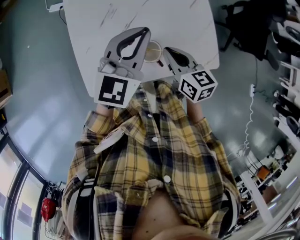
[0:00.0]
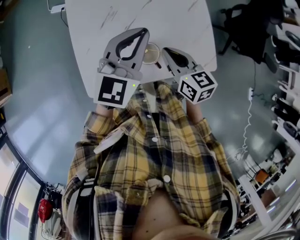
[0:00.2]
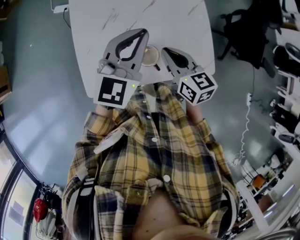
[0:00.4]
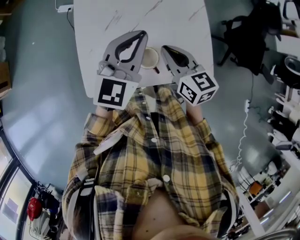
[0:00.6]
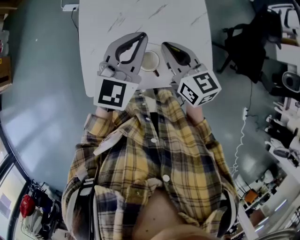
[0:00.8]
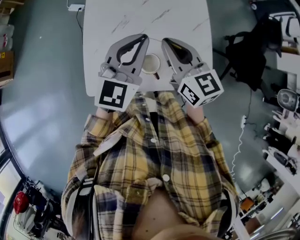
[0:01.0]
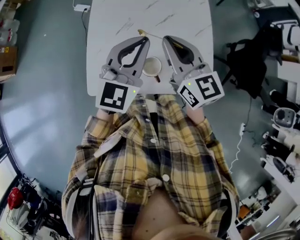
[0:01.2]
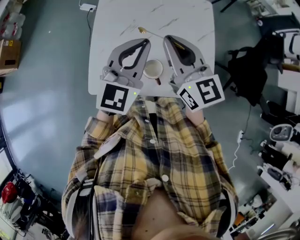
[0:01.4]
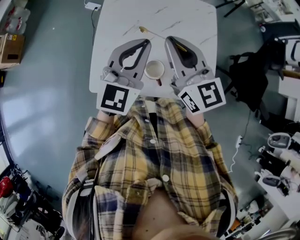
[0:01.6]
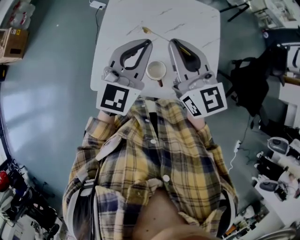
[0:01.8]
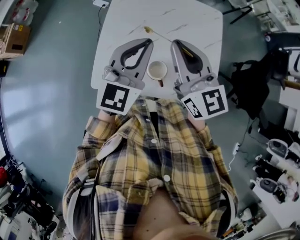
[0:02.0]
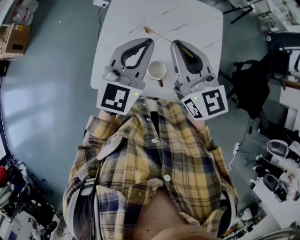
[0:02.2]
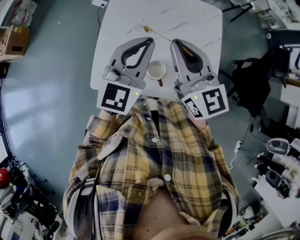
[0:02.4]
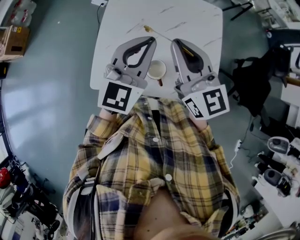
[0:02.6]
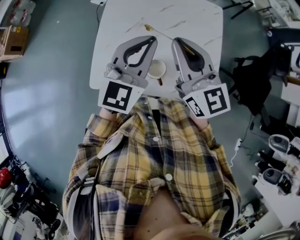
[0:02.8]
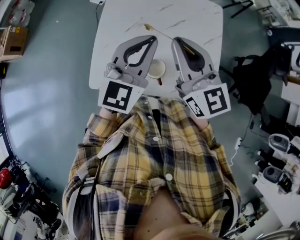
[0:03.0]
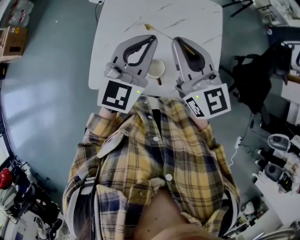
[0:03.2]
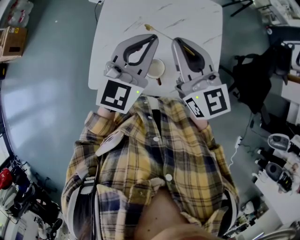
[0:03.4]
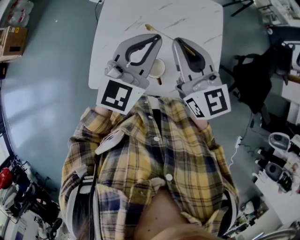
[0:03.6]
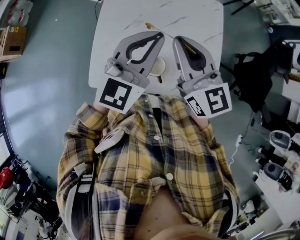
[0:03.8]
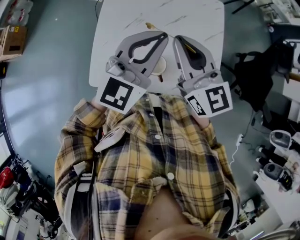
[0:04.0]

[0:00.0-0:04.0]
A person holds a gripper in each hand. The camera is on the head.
0:00.0 to 0:01.4: The left gripper travels upward by about 5 cm. Meanwhile the right gripper is displaced upward by roughly 20 cm, and turns by about 40 degrees.
0:01.4 to 0:04.0: The grippers stay close to where they were, moving slightly.

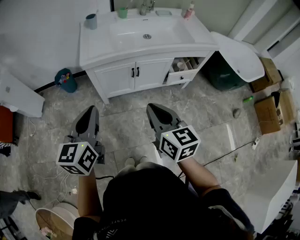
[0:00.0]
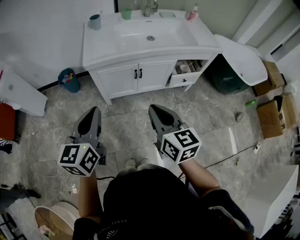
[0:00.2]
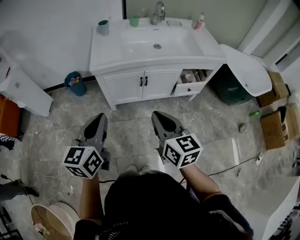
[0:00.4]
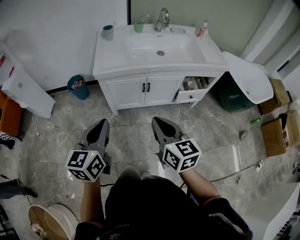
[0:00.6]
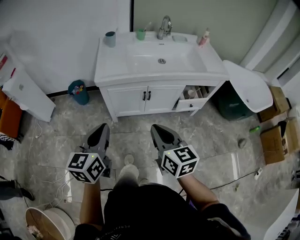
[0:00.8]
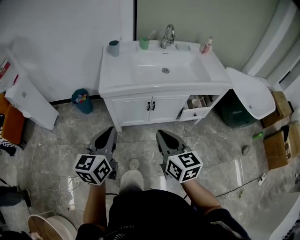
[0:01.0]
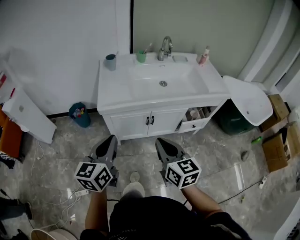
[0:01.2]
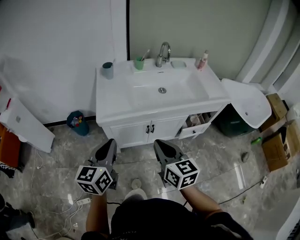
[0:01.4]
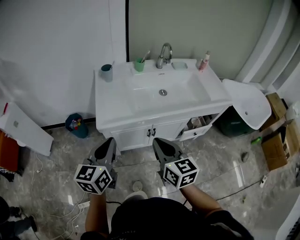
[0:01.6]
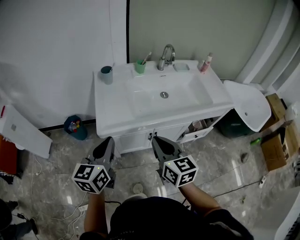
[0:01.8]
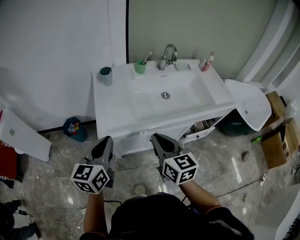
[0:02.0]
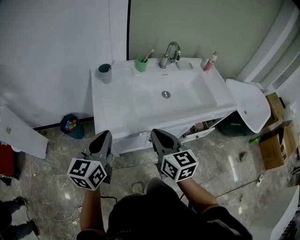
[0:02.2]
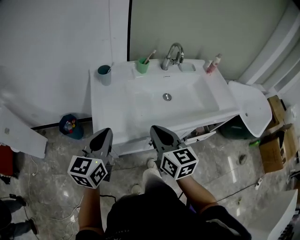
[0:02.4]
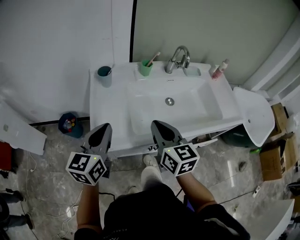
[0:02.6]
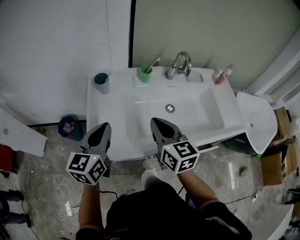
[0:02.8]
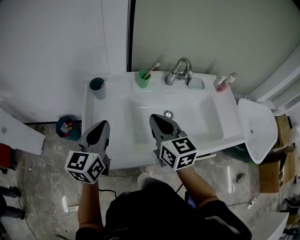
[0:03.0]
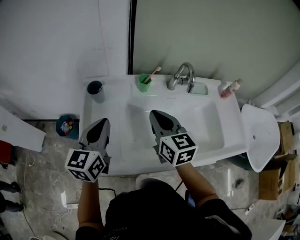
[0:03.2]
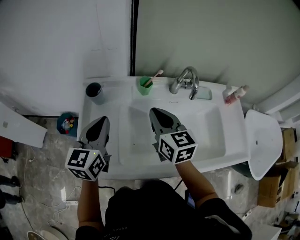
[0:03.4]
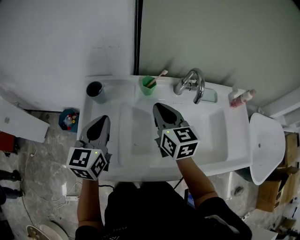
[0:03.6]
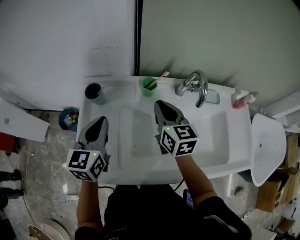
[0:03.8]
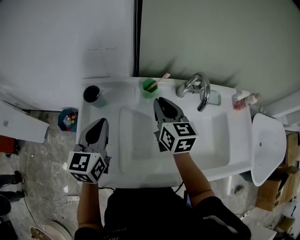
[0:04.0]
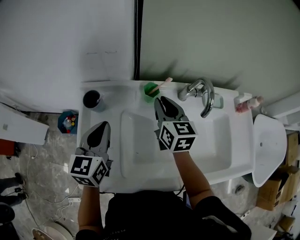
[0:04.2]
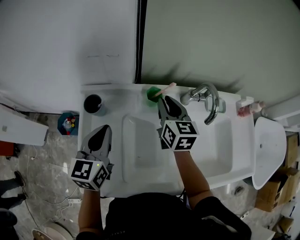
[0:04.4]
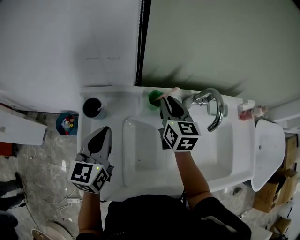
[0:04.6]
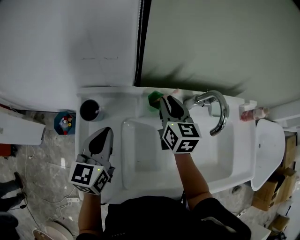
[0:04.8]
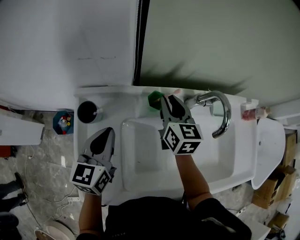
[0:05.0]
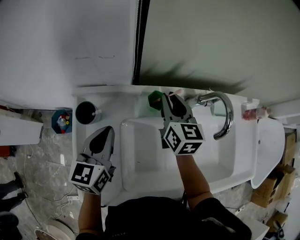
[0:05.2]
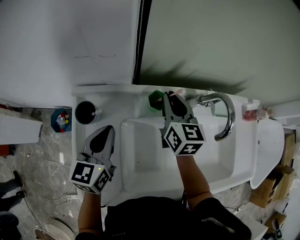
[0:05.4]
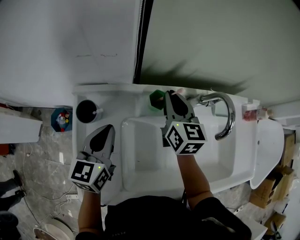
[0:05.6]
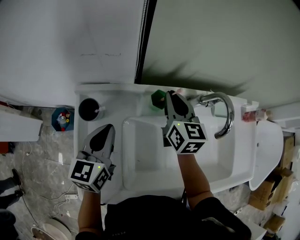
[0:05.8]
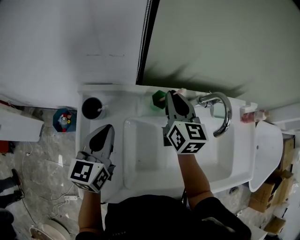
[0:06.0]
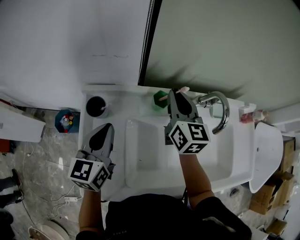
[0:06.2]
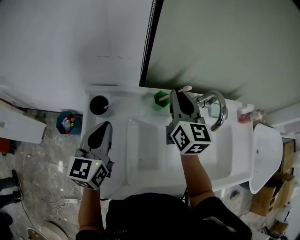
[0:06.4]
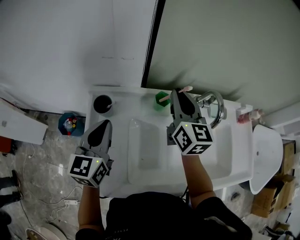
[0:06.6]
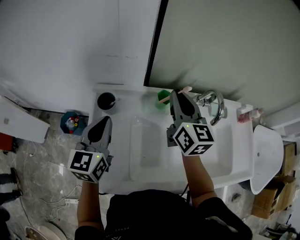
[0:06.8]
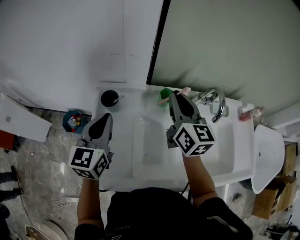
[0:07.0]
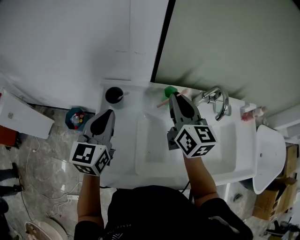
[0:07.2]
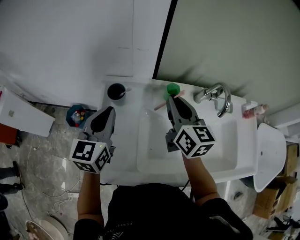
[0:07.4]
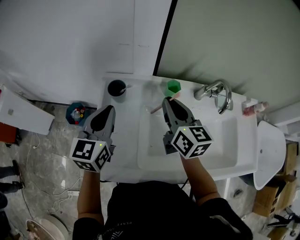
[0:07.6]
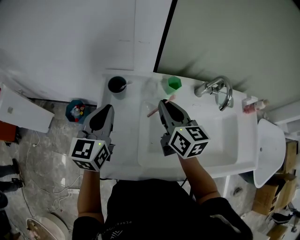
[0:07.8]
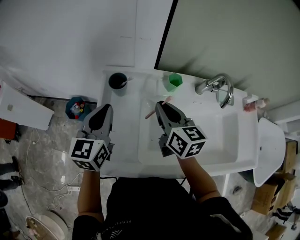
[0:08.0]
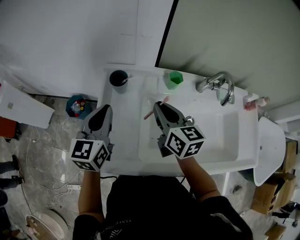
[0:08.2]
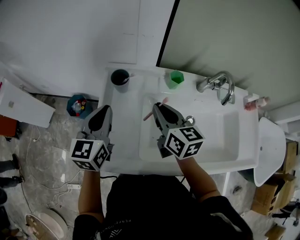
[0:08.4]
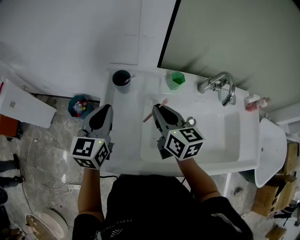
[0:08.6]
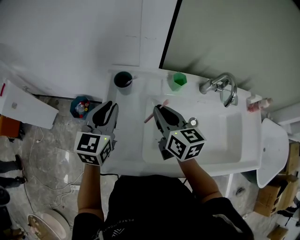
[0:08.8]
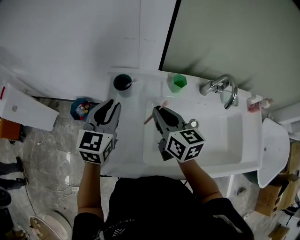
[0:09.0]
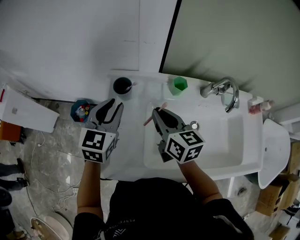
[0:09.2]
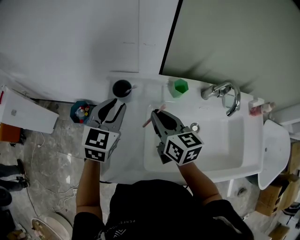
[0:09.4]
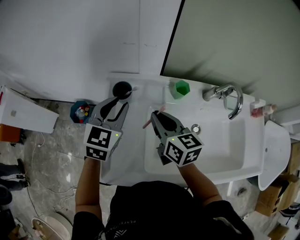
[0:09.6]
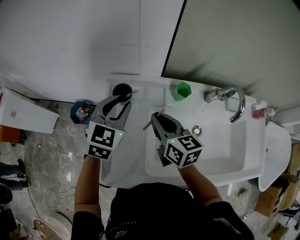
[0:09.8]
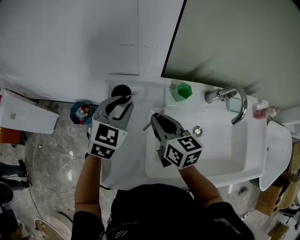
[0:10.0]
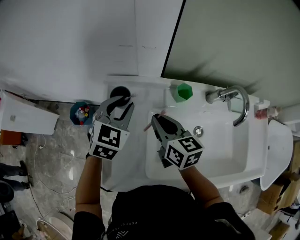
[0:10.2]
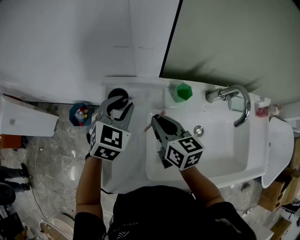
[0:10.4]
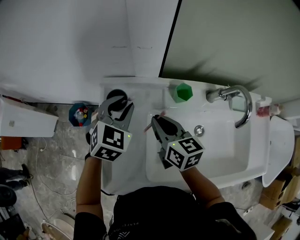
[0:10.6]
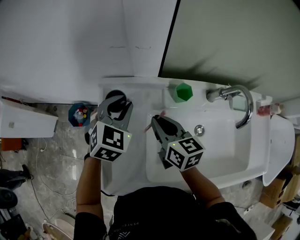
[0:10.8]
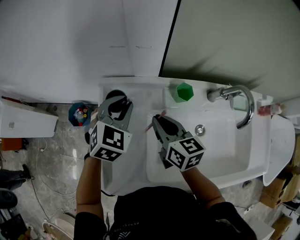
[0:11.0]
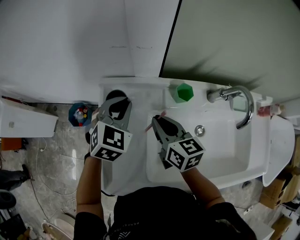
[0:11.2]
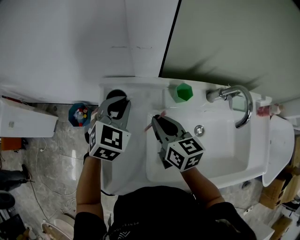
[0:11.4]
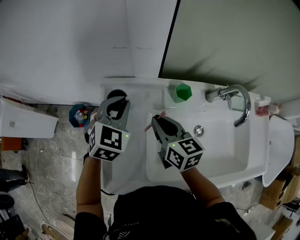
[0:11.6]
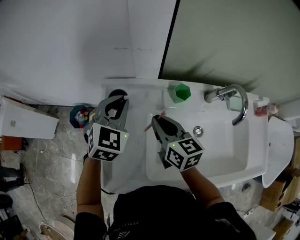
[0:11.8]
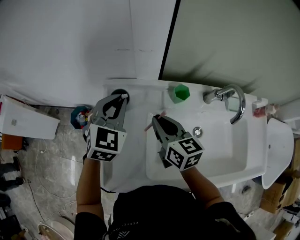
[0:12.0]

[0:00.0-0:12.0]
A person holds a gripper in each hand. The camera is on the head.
0:00.0 to 0:01.6: Both grippers move forward, some 20 cm.
0:01.6 to 0:03.0: Both grippers travel together forward, roughly 30 cm.
0:03.0 to 0:04.4: The right gripper shifts about 25 cm forward. The left gripper moves forward, about 15 cm.
0:06.0 to 0:07.6: The left gripper shifts roughly 10 cm to the left and upward, while the right gripper goes roughly 15 cm backward and to the left.
0:07.6 to 0:09.0: The right gripper heads to the left, covering some 5 cm.
0:09.0 to 0:10.4: The left gripper goes about 10 cm forward and to the right, and changes its angle by some 30 degrees. The right gripper shifts approximately 5 cm forward.
0:10.4 to 0:12.0: The left gripper closes.

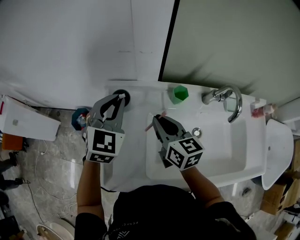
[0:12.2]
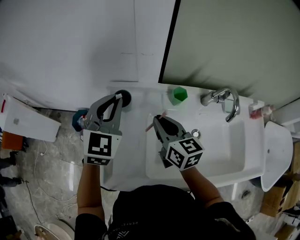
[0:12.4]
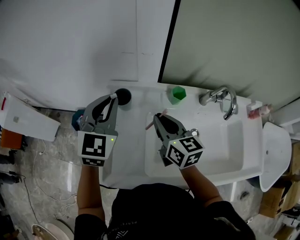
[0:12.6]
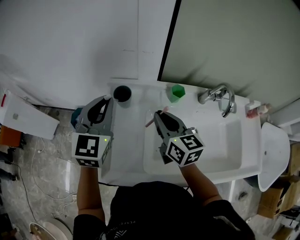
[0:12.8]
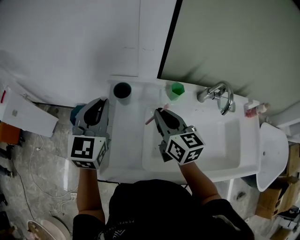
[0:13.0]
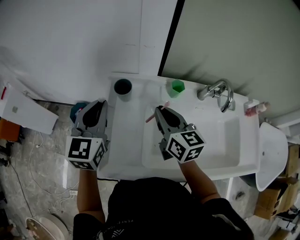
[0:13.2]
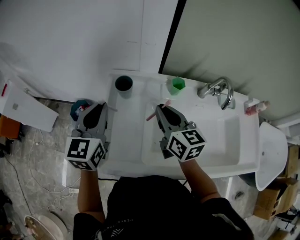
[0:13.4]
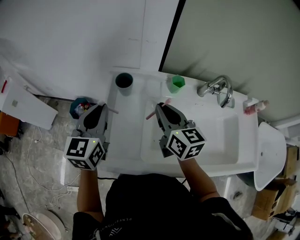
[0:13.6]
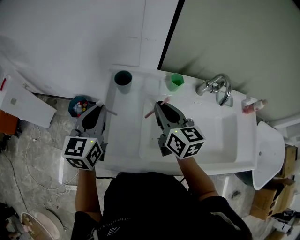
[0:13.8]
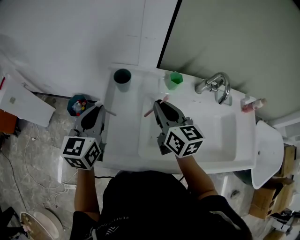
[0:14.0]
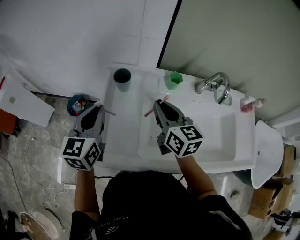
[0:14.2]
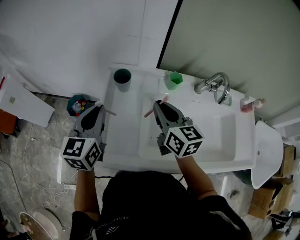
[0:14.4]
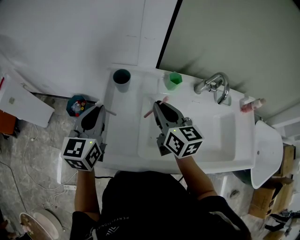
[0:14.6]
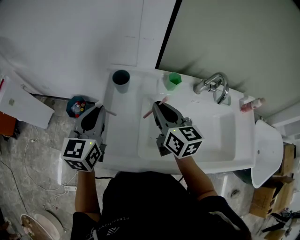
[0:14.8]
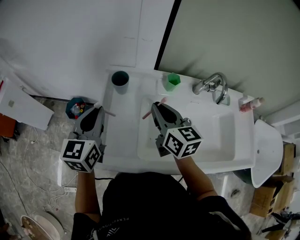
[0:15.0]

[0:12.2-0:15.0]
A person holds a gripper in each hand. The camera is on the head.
0:12.2 to 0:13.6: The left gripper is displaced backward and to the left by some 15 cm, and turns by approximately 30 degrees. Meanwhile the right gripper ends up about 5 cm from where it was.
0:13.6 to 0:15.0: There are only small adjustments of the grippers.

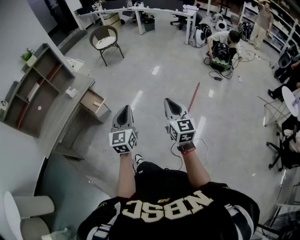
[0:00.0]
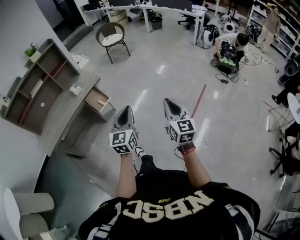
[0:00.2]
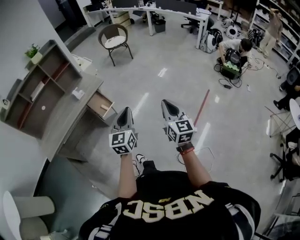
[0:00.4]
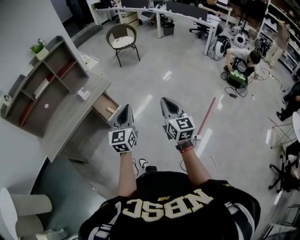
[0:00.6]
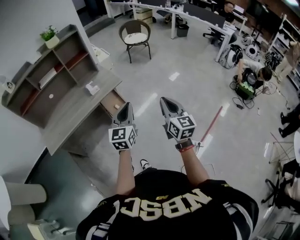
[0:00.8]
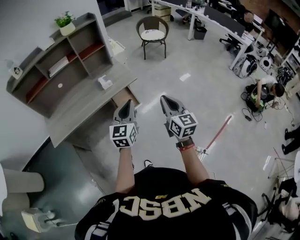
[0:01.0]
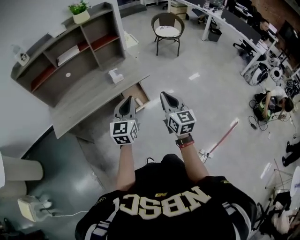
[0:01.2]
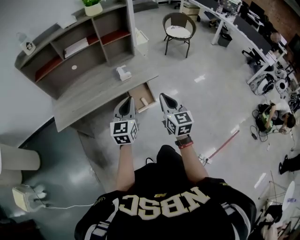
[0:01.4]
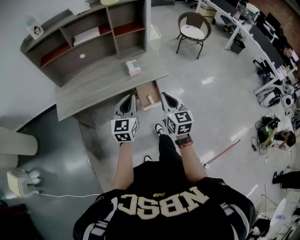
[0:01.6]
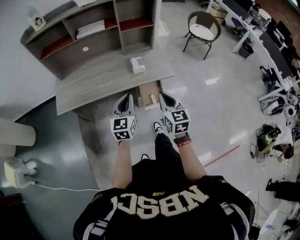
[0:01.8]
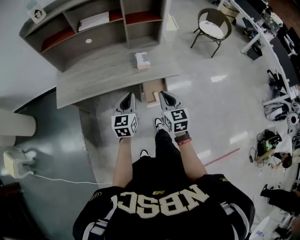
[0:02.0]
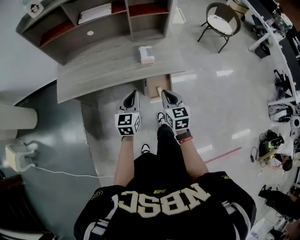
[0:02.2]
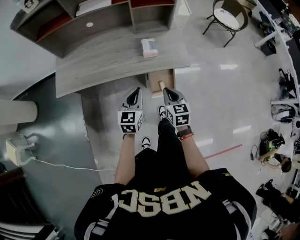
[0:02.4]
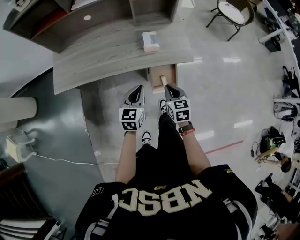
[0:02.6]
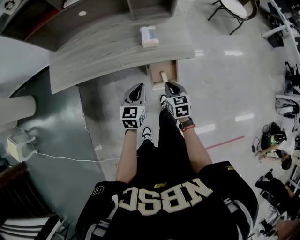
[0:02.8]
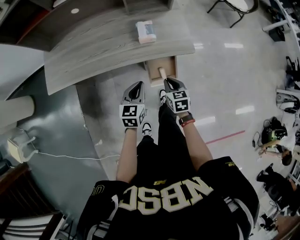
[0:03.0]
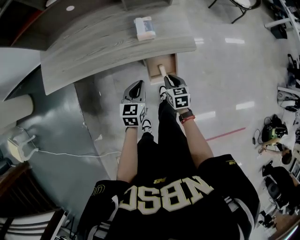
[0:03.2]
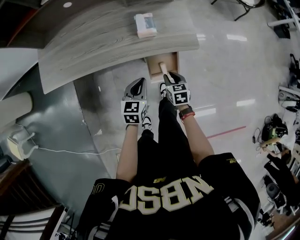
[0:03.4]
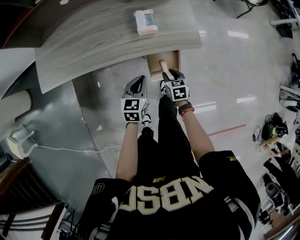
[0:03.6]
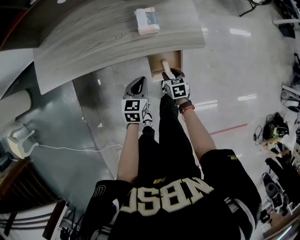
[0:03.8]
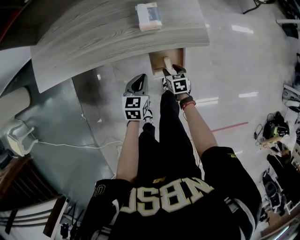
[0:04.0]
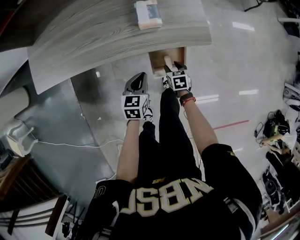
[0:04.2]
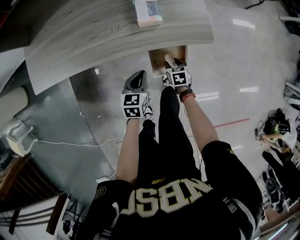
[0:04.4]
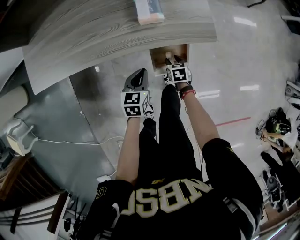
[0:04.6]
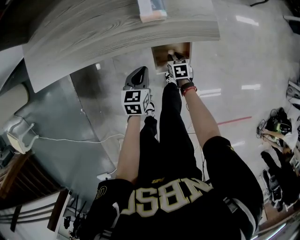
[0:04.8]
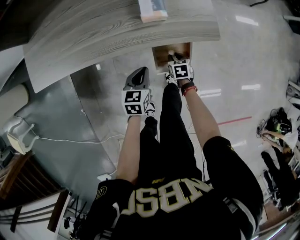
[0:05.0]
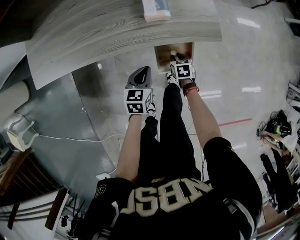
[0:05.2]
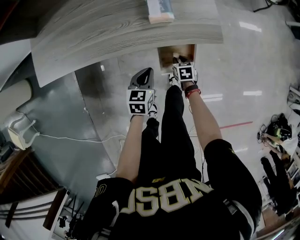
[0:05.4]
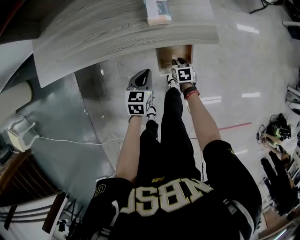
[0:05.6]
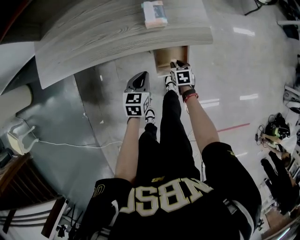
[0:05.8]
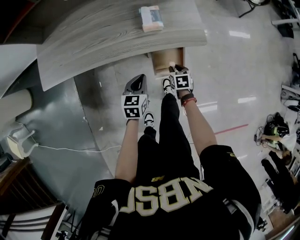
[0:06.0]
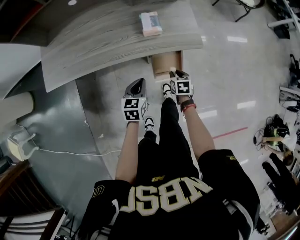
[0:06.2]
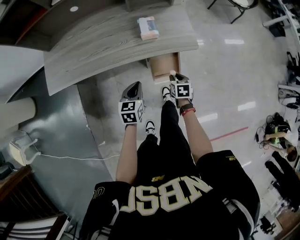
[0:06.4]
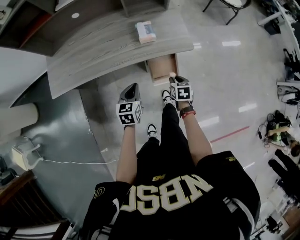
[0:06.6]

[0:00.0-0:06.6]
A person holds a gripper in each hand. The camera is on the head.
0:00.0 to 0:01.6: The two grippers travel together, about 50 cm. The right gripper changes its angle by some 40 degrees. Meanwhile the left gripper turns by roughly 30 degrees.
0:01.6 to 0:03.2: The two grippers go roughly 30 cm downward and forward. The right gripper points its fingers some 30 degrees further downward; the left gripper rotates approximately 30 degrees.
0:03.2 to 0:05.0: The left gripper is displaced downward by some 10 cm; the right gripper goes approximately 20 cm downward, and opens, then closes once more.
0:05.0 to 0:06.6: The right gripper is displaced upward and backward by roughly 20 cm, while the left gripper is displaced upward and backward by about 15 cm.
